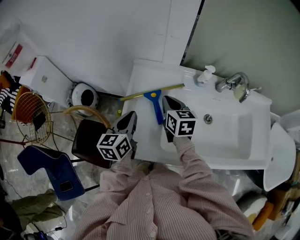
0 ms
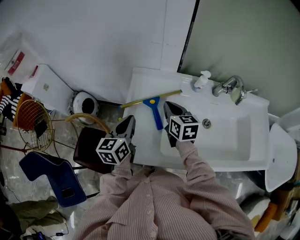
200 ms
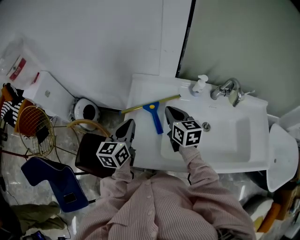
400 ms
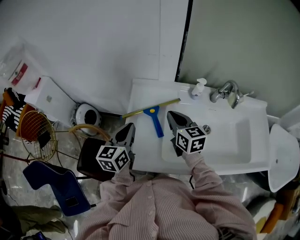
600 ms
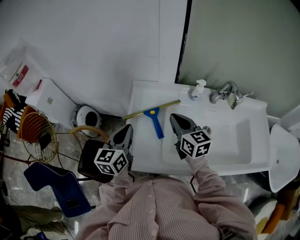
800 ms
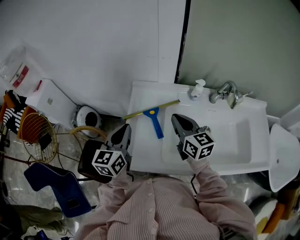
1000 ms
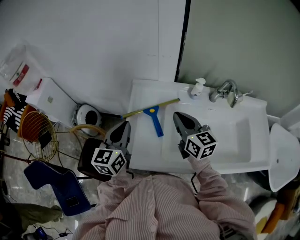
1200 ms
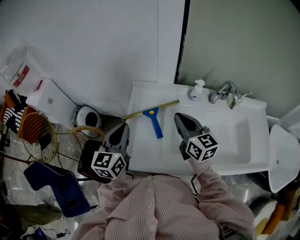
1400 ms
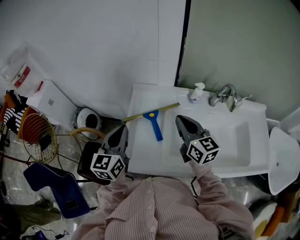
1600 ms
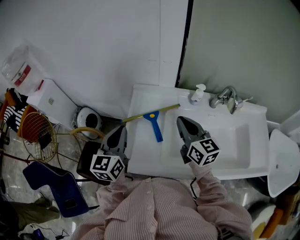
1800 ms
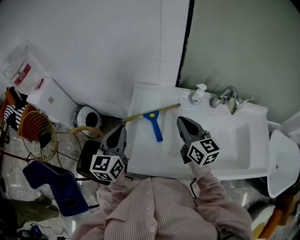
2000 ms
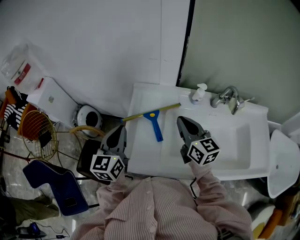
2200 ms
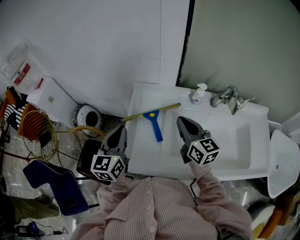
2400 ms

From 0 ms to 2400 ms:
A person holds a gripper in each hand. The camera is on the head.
From 0 ms to 1200 ms: The left gripper heads upward, covering about 10 cm. Meanwhile the right gripper is displaced upward and backward by roughly 10 cm.
From 1200 ms to 2400 ms: There are only small adjustments of the grippers.

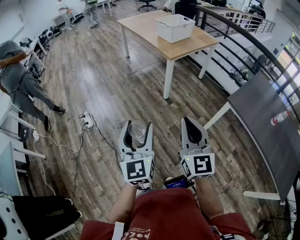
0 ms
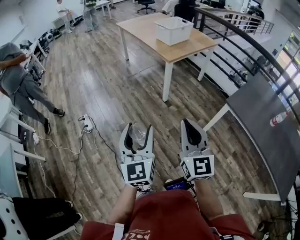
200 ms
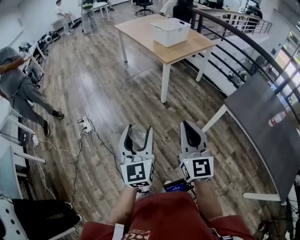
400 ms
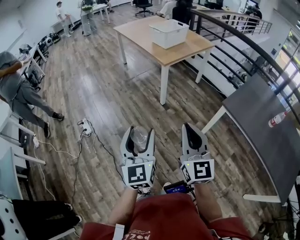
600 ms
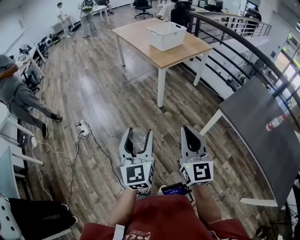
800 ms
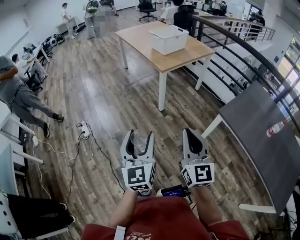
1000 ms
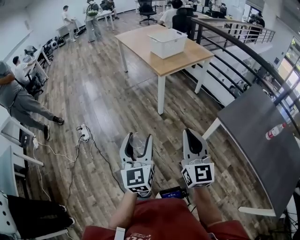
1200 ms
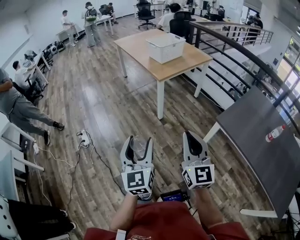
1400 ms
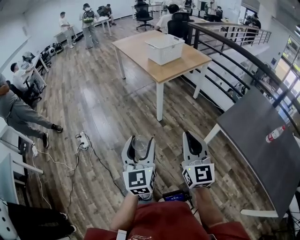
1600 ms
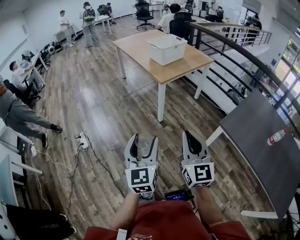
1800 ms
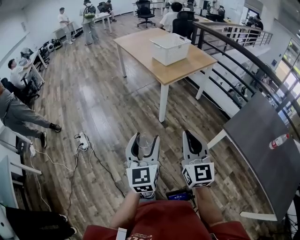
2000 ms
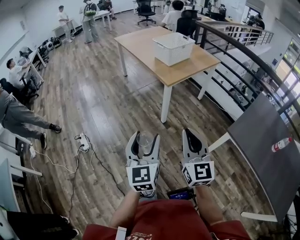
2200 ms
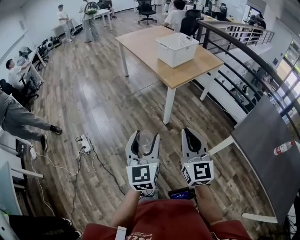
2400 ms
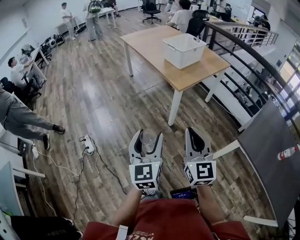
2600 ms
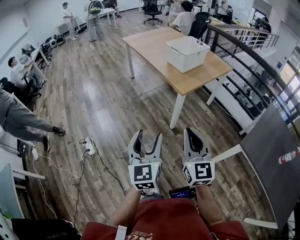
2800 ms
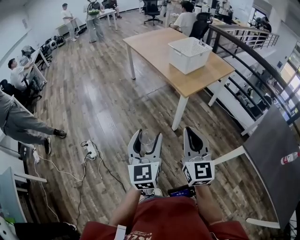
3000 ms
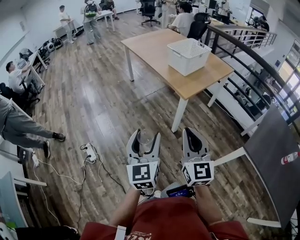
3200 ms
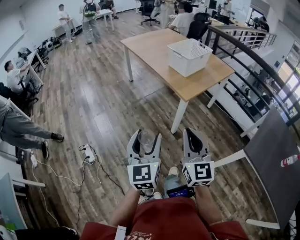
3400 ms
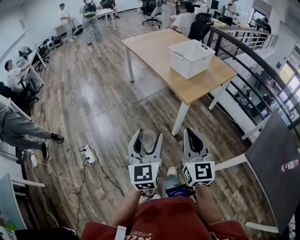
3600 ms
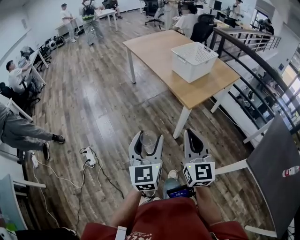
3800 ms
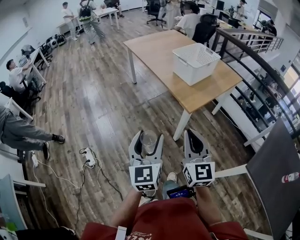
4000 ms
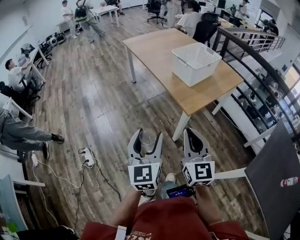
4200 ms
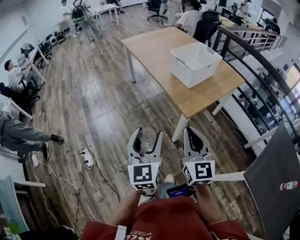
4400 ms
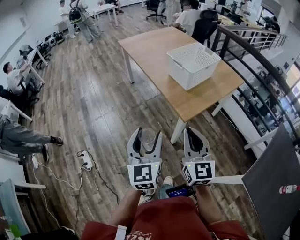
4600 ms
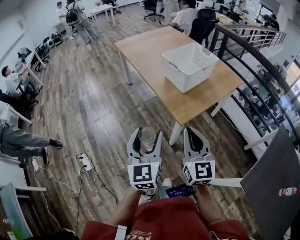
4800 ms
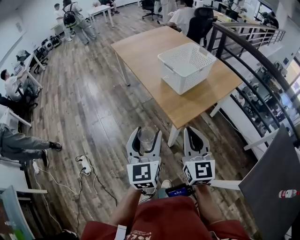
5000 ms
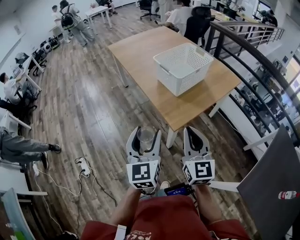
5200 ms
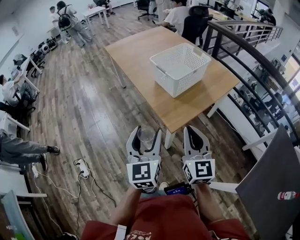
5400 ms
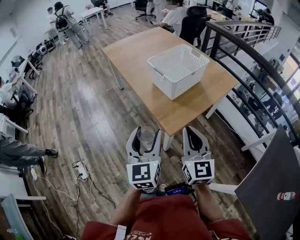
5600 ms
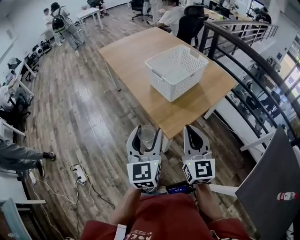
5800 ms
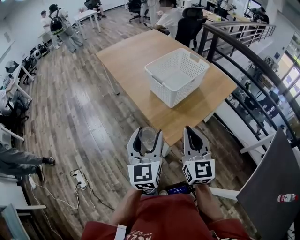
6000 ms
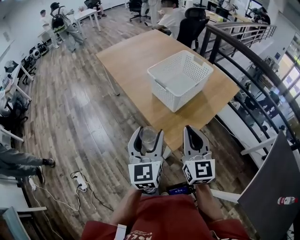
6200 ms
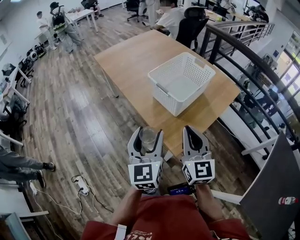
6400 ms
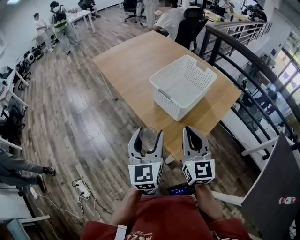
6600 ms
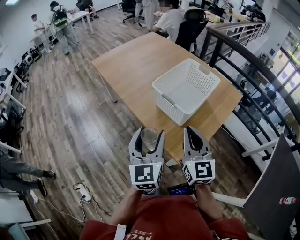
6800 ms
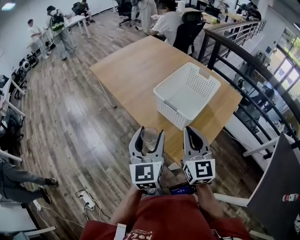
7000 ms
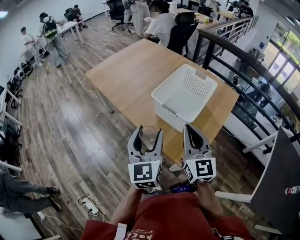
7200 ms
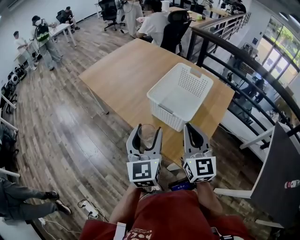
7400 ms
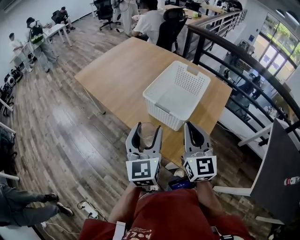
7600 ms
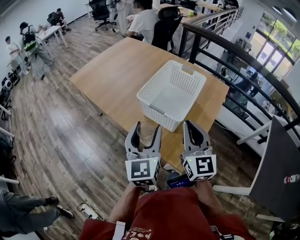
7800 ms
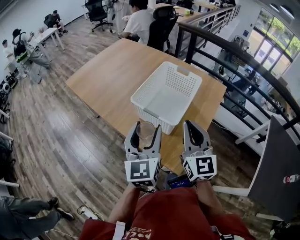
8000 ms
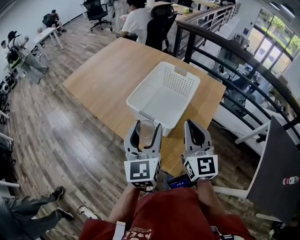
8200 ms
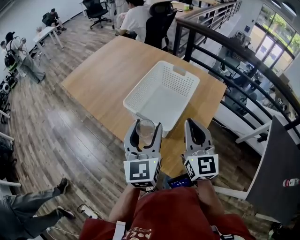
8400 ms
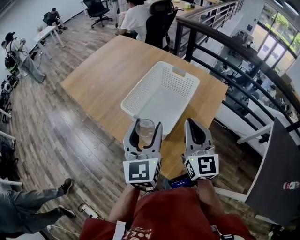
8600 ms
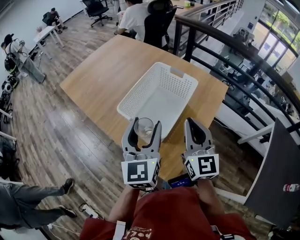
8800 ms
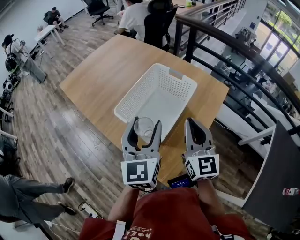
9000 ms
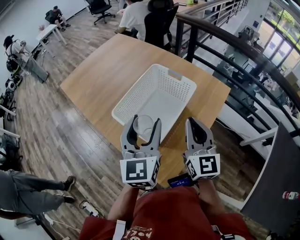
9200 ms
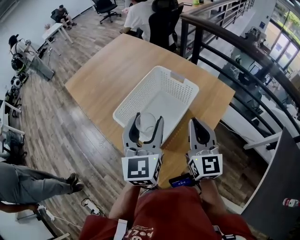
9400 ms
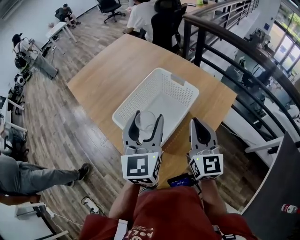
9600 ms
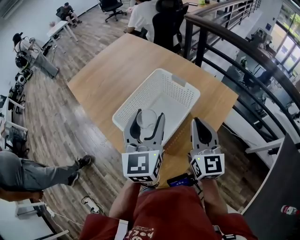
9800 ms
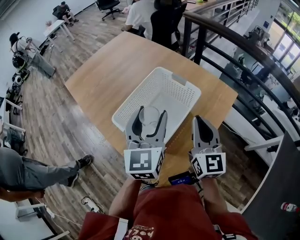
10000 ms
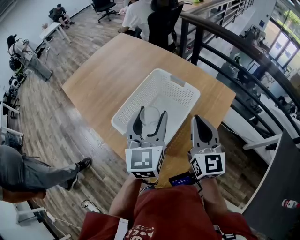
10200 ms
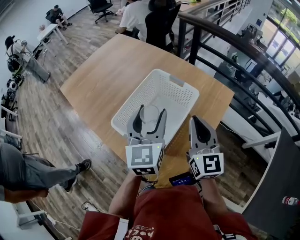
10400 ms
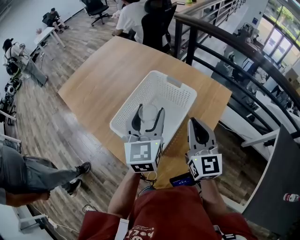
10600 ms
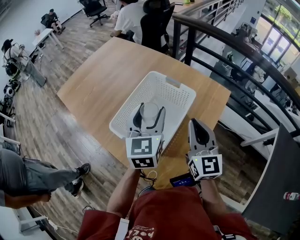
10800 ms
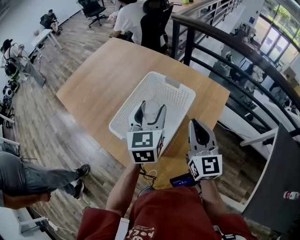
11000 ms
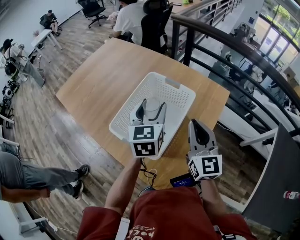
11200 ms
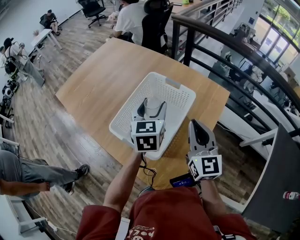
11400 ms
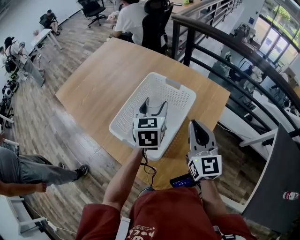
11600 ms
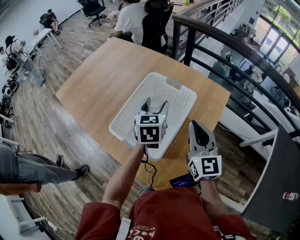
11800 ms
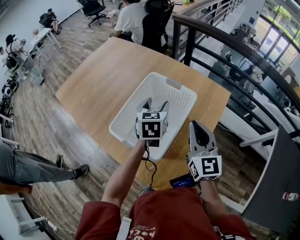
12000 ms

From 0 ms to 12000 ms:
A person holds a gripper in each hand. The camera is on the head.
From 0 ms to 1600 ms: The two grippers go roughly 10 cm to the right.
From 1600 ms to 3000 ms: The grippers both shift forward and to the left by approximately 25 cm.
From 3000 ms to 4400 ms: The two grippers go approximately 20 cm forward.
From 4400 ms to 6000 ms: The two grippers go roughly 20 cm forward and to the right.
From 6000 ms to 7600 ms: Both grippers travel together forward, approximately 15 cm.
From 7600 ms to 9000 ms: Both grippers travel together to the right and forward, some 15 cm.
From 9000 ms to 10400 ms: The two grippers go roughly 10 cm forward.
From 10400 ms to 12000 ms: The left gripper travels downward and forward by approximately 15 cm, and changes its angle by roughly 30 degrees.

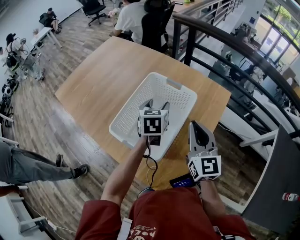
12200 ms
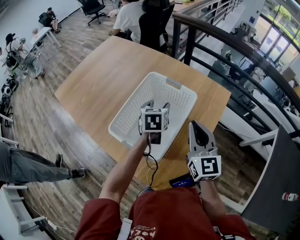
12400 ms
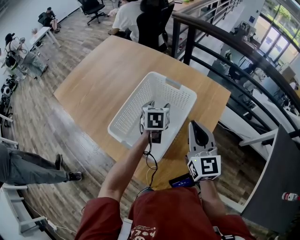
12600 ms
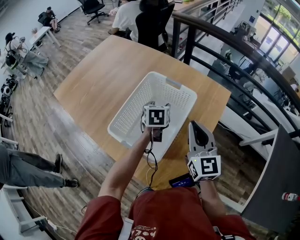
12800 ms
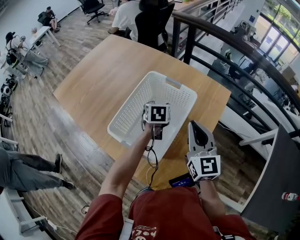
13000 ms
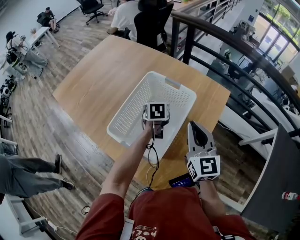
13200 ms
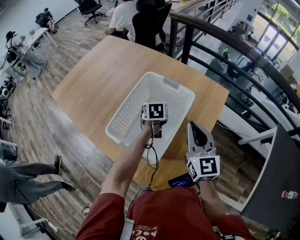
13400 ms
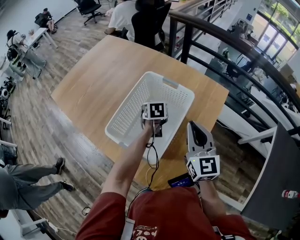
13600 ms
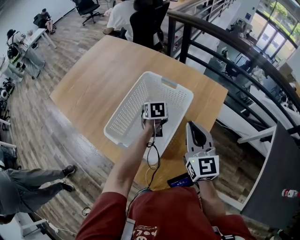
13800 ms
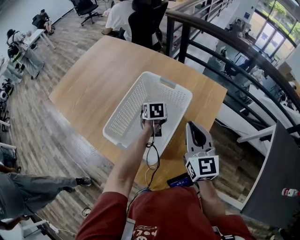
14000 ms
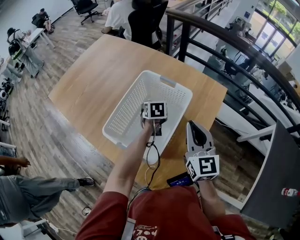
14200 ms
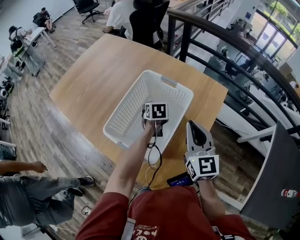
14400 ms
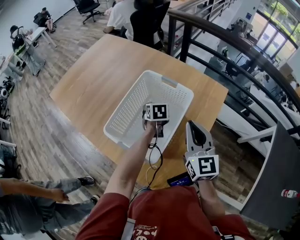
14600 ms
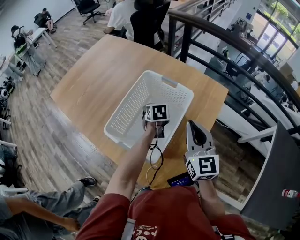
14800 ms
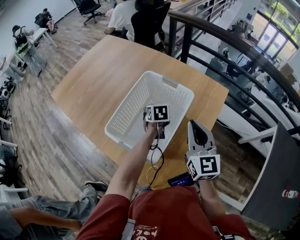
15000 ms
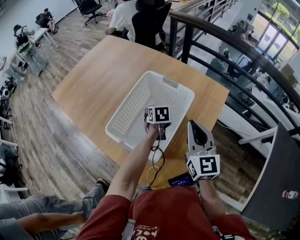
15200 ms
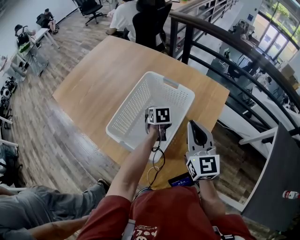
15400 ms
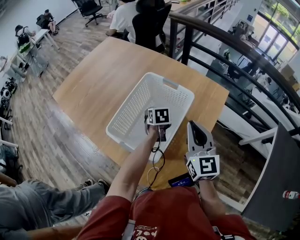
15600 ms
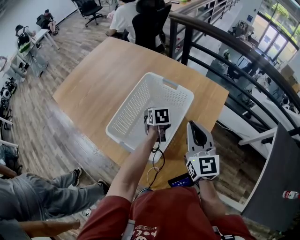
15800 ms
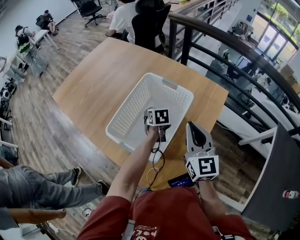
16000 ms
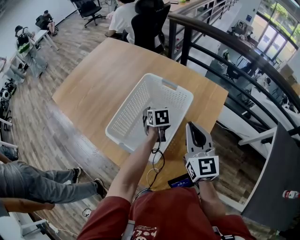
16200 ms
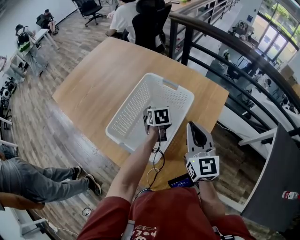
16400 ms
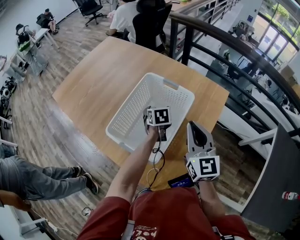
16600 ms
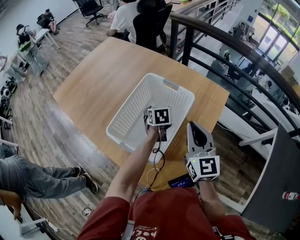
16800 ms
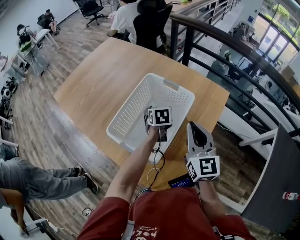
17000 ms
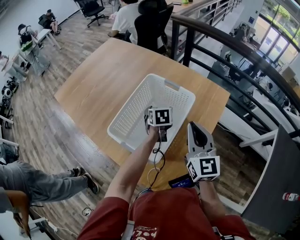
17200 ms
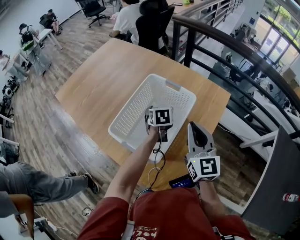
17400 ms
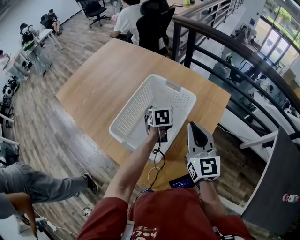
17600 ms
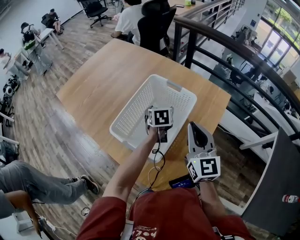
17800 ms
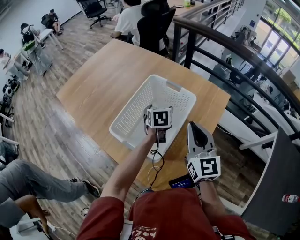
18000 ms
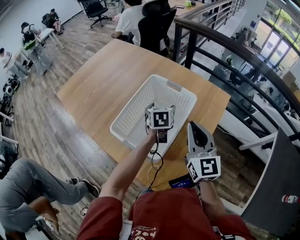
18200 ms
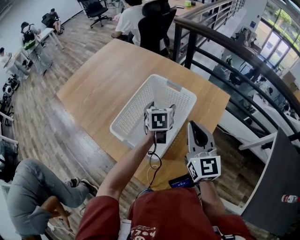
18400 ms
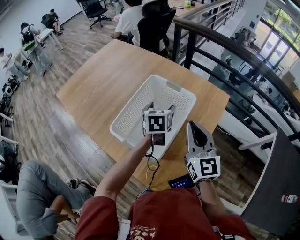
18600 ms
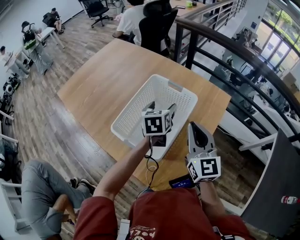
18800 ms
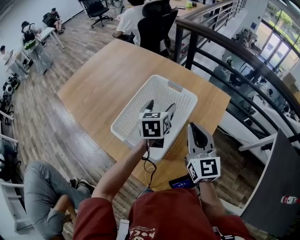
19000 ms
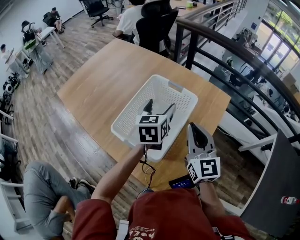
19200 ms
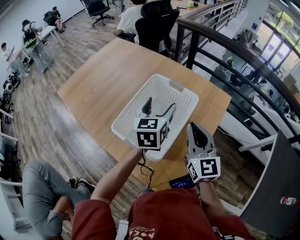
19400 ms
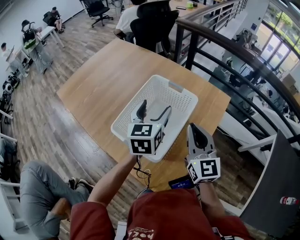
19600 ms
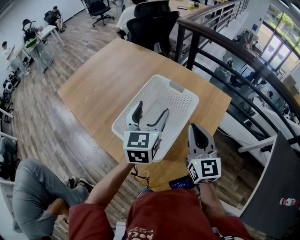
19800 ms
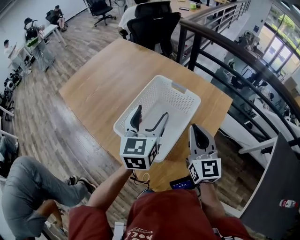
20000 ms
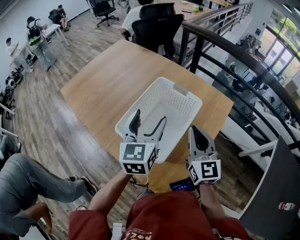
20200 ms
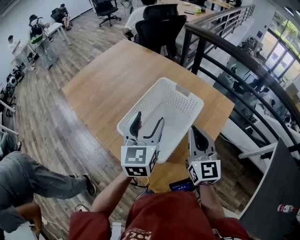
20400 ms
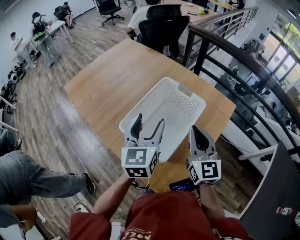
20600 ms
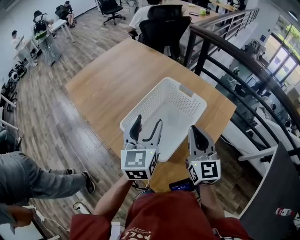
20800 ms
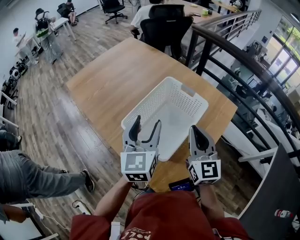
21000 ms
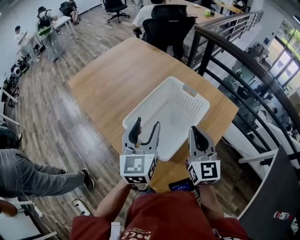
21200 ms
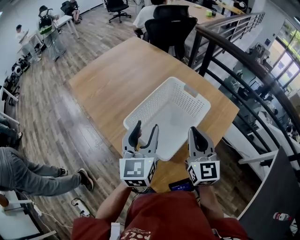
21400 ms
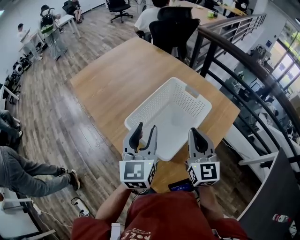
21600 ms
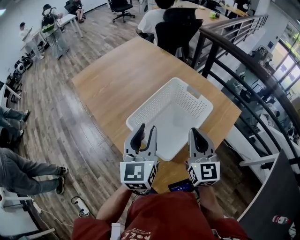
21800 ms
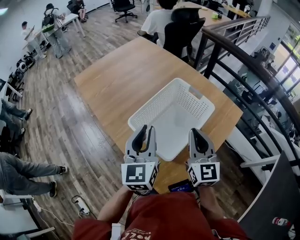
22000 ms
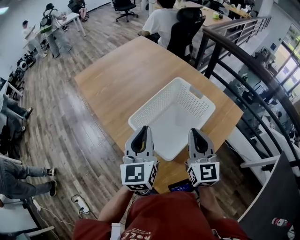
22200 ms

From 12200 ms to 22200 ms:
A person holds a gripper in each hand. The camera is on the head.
From 12200 ms to 13600 ms: The left gripper travels downward by roughly 10 cm.
From 13600 ms to 15000 ms: The grippers make only small movements.
From 15000 ms to 16400 ms: Neither gripper changes place.
From 16400 ms to 18000 ms: The grippers stay close to where they were, moving slightly.
From 18000 ms to 19400 ms: The left gripper travels upward by roughly 15 cm, and turns by roughly 20 degrees.
From 19400 ms to 20800 ms: The left gripper moves backward and to the left, roughly 10 cm.
From 20800 ms to 22200 ms: The left gripper shifts by some 5 cm, and closes up.
